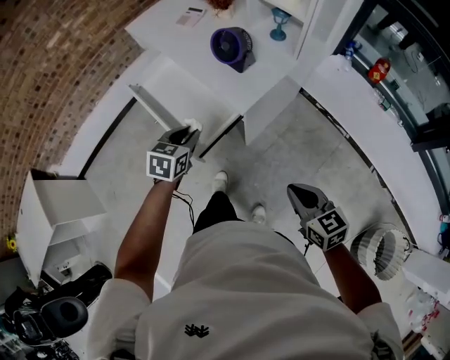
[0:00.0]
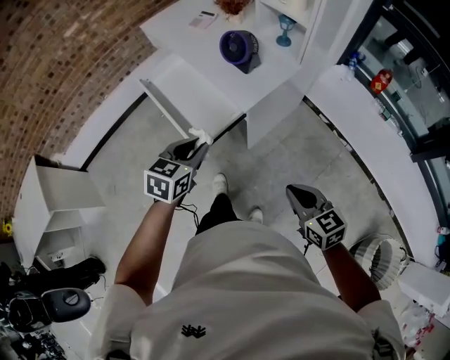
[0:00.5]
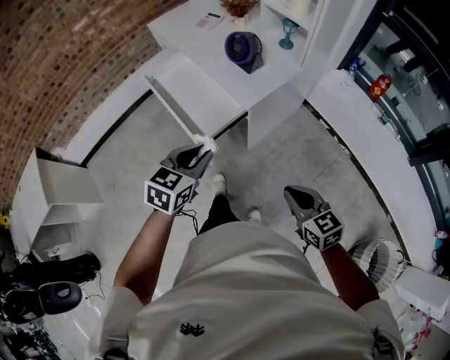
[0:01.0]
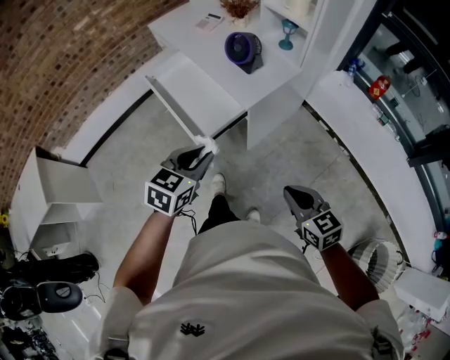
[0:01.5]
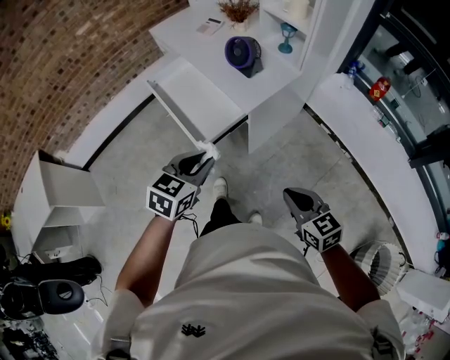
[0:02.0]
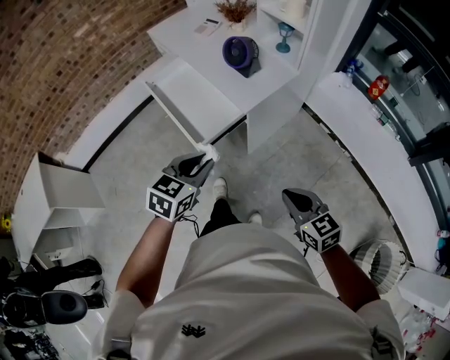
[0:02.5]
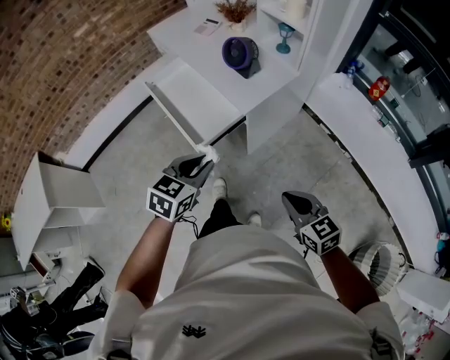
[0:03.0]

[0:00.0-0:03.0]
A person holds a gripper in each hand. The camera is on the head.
0:00.0 to 0:01.5: The left gripper shifts some 20 cm backward and upward. The right gripper goes some 5 cm backward.
0:01.5 to 0:03.0: Neither gripper changes place.

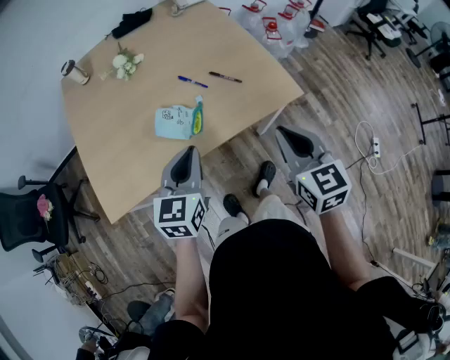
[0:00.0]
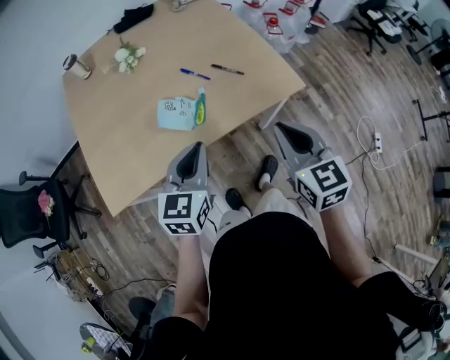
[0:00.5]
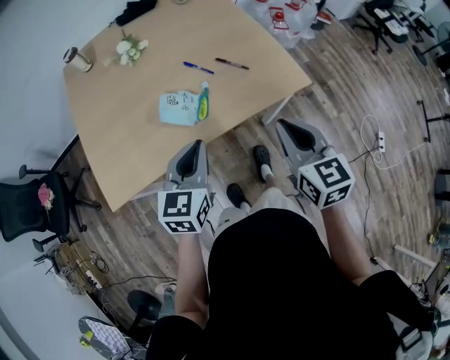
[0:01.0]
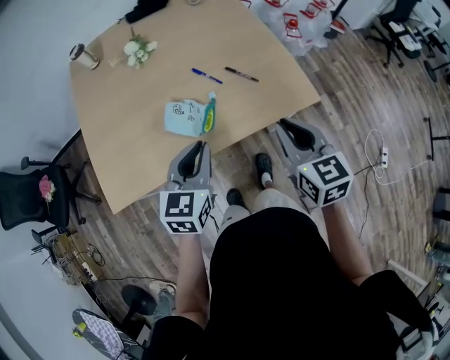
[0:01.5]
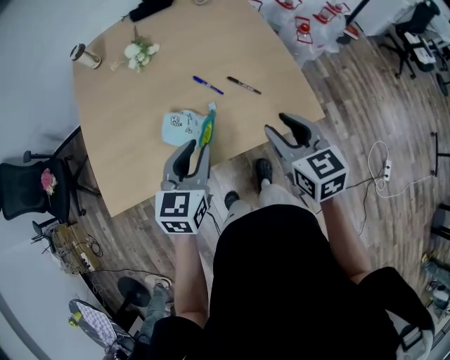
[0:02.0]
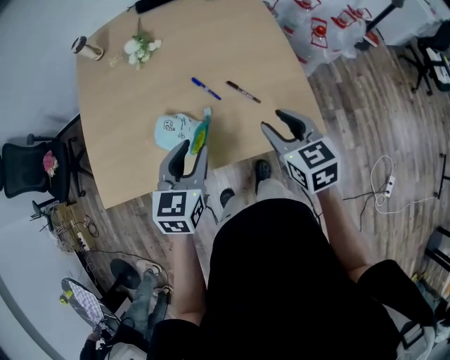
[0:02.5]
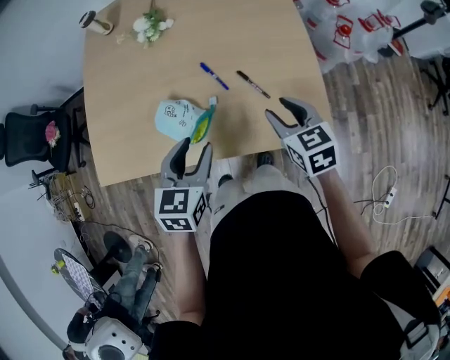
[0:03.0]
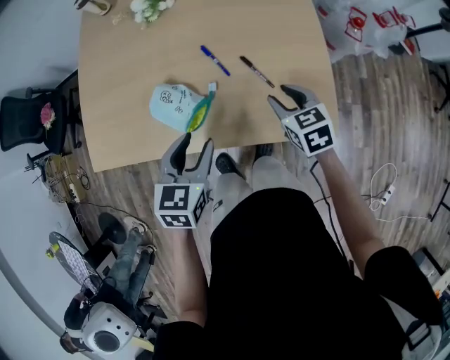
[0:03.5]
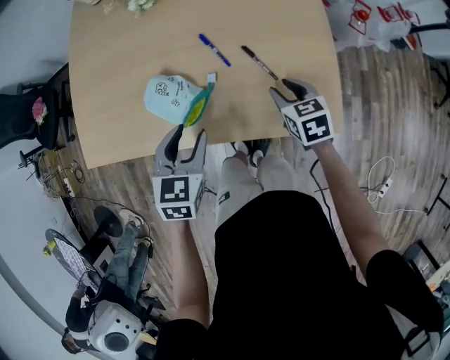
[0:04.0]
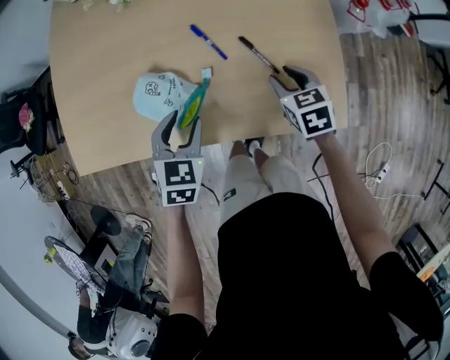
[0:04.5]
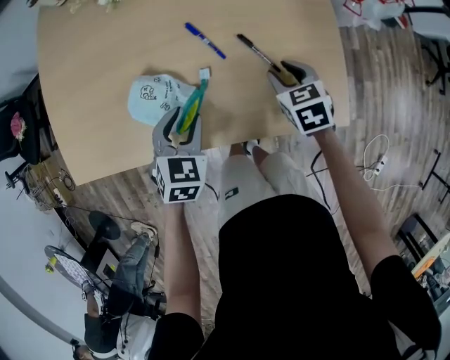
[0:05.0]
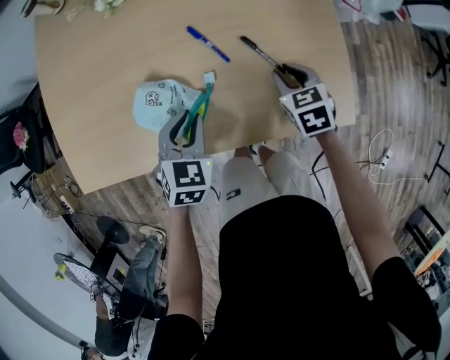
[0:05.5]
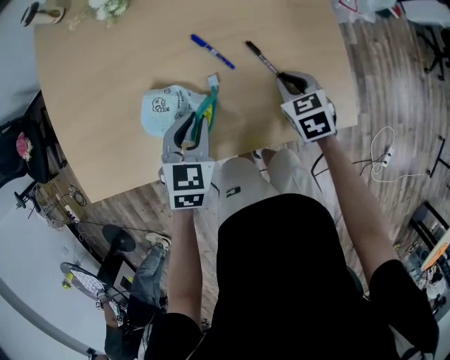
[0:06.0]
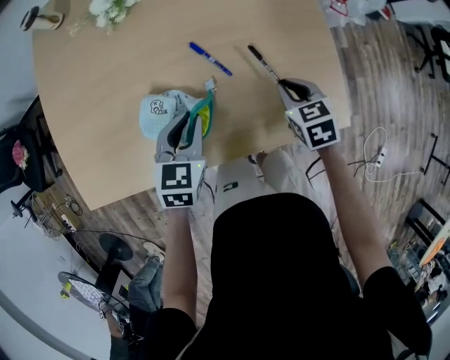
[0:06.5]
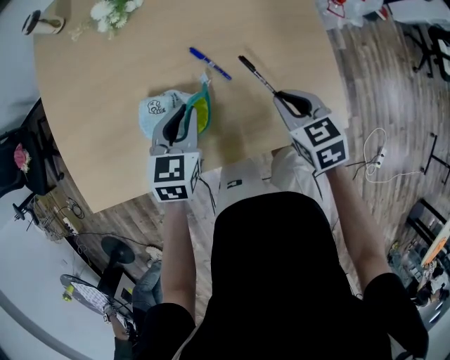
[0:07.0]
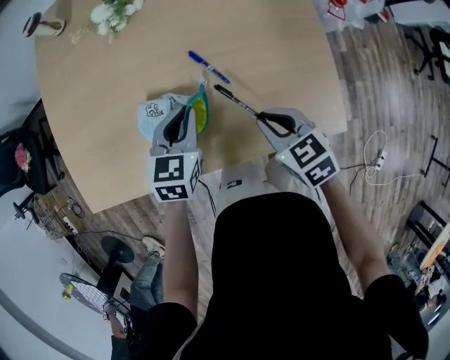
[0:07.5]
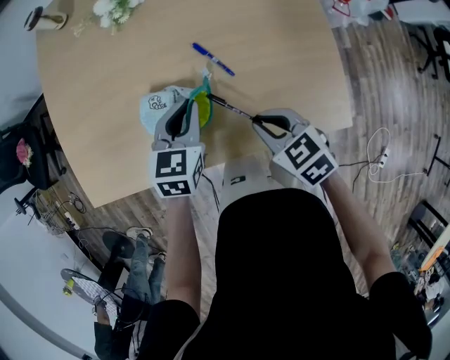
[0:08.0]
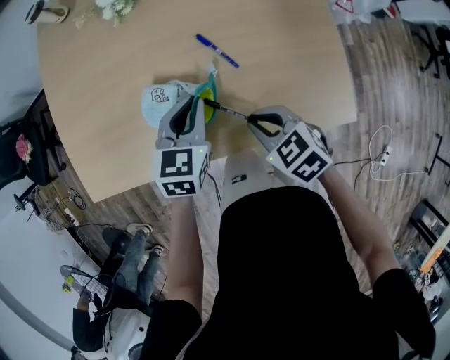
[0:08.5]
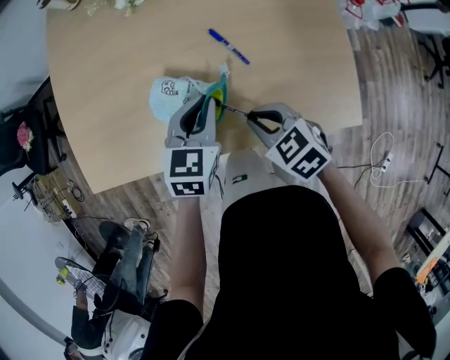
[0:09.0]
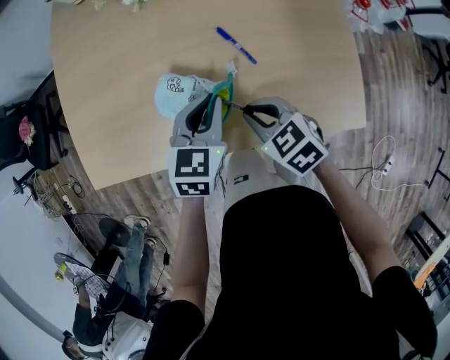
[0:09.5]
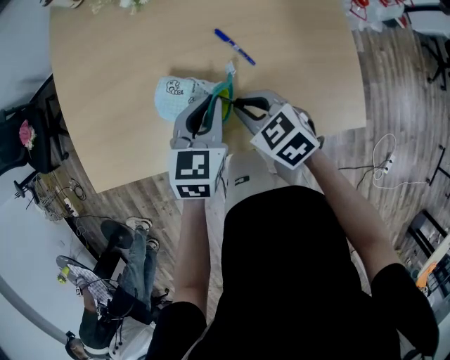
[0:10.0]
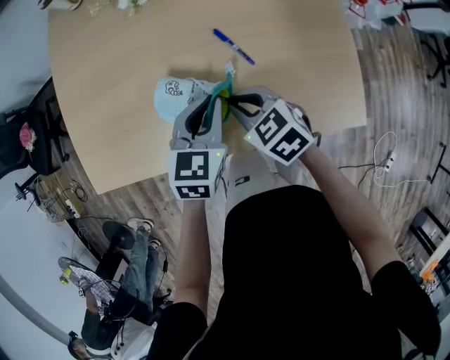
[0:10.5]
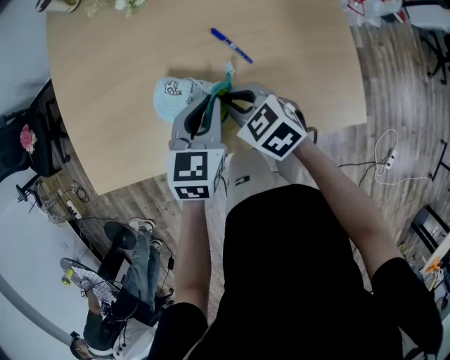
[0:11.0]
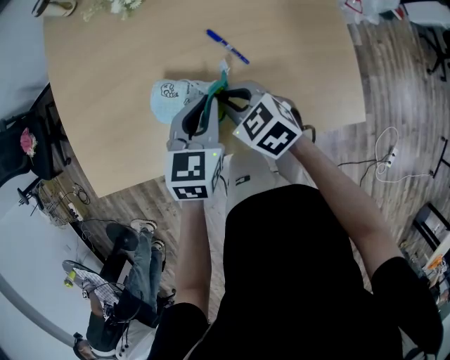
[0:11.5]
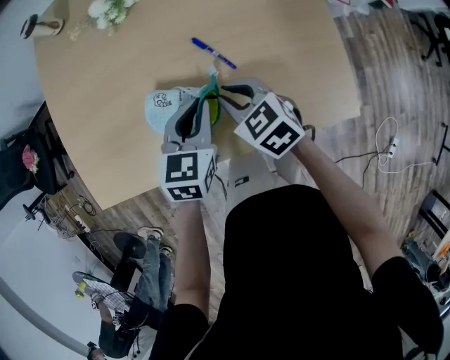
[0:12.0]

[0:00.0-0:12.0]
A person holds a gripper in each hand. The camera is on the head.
0:00.0 to 0:02.0: The right gripper travels forward by approximately 15 cm, and opens up. Meanwhile the left gripper heads forward, covering approximately 10 cm, and opens up.
0:02.0 to 0:04.0: The right gripper is displaced downward and forward by about 25 cm, and rotates approximately 30 degrees, while the left gripper goes roughly 10 cm downward, turns by roughly 30 degrees, and opens its fingers.
0:04.0 to 0:06.0: The left gripper shifts some 10 cm downward and forward, and closes its fingers; the right gripper moves some 5 cm, and closes up.
0:06.0 to 0:08.0: The left gripper moves approximately 5 cm; the right gripper goes about 15 cm to the left, upward and backward, and rotates approximately 20 degrees.
0:08.0 to 0:10.0: The right gripper is displaced to the left and forward by approximately 10 cm.
0:10.0 to 0:12.0: There are only small adjustments of the grippers.

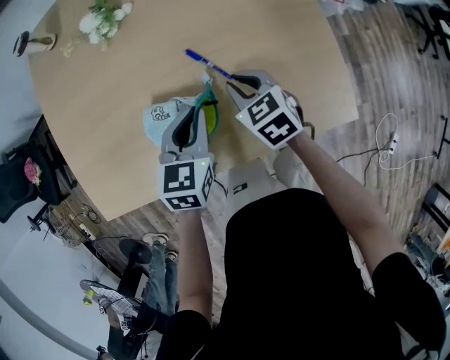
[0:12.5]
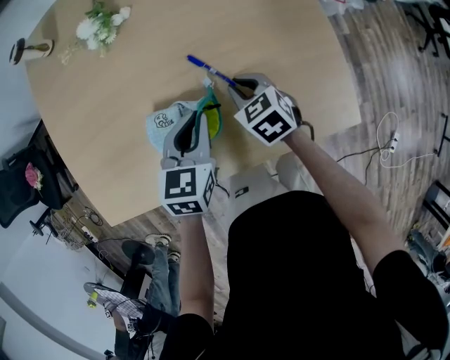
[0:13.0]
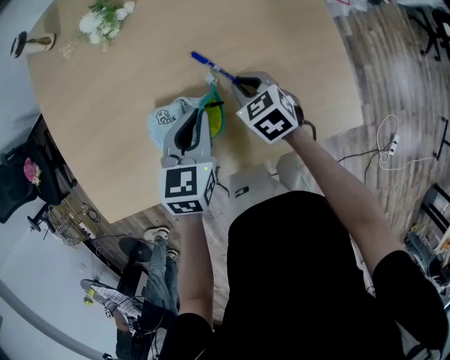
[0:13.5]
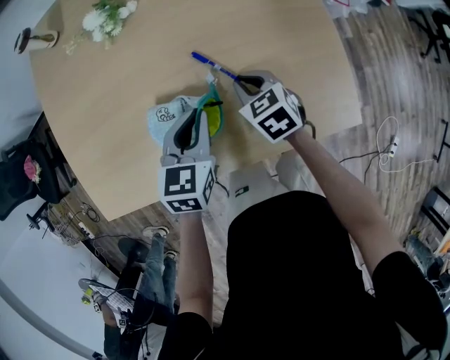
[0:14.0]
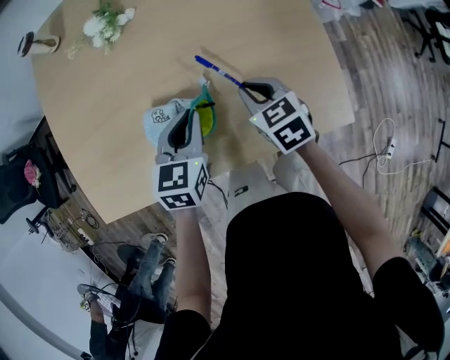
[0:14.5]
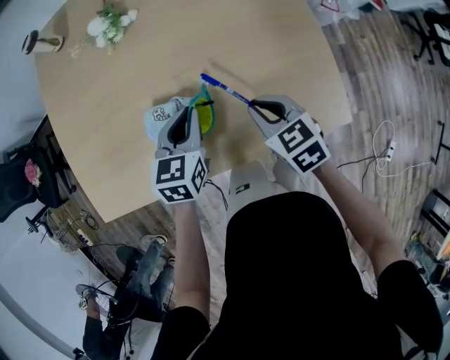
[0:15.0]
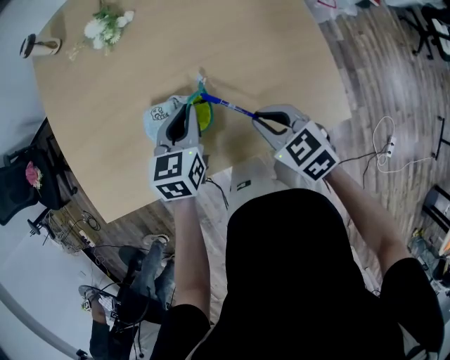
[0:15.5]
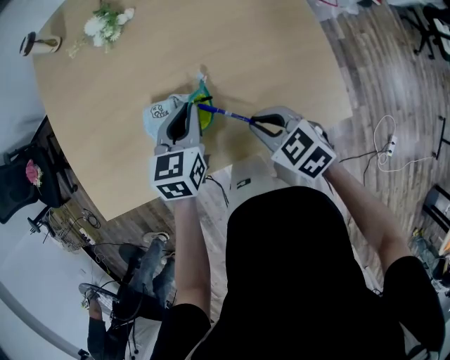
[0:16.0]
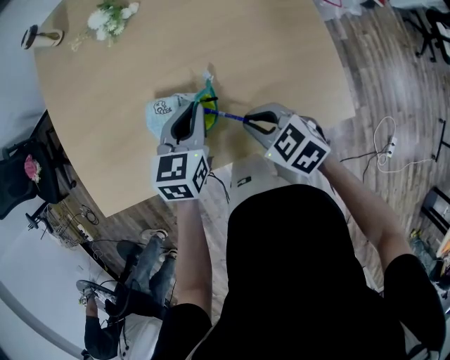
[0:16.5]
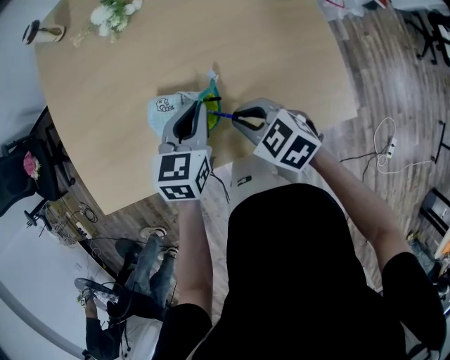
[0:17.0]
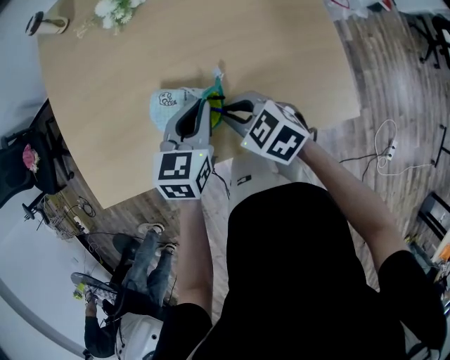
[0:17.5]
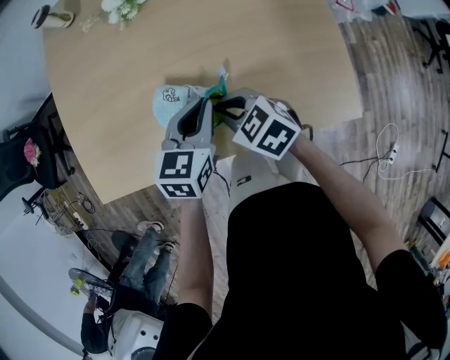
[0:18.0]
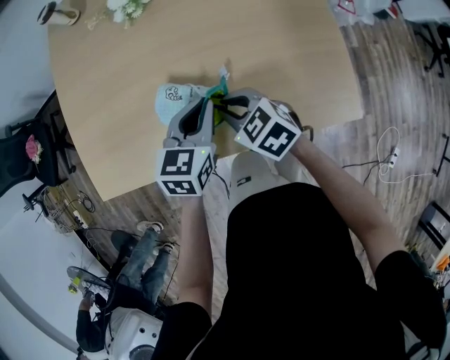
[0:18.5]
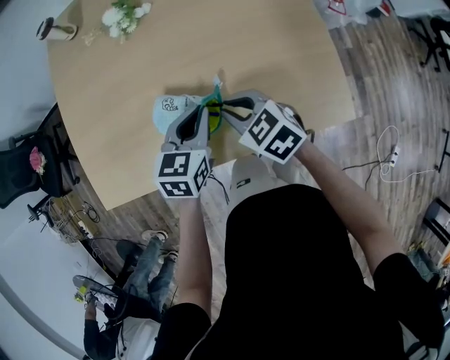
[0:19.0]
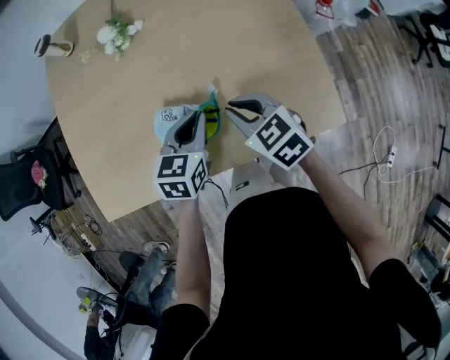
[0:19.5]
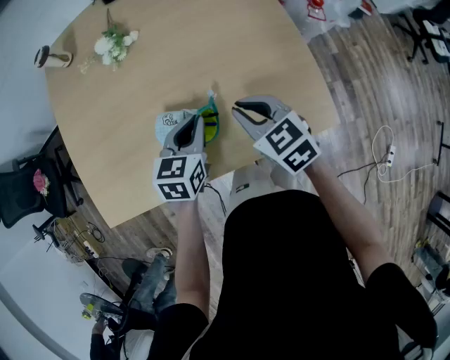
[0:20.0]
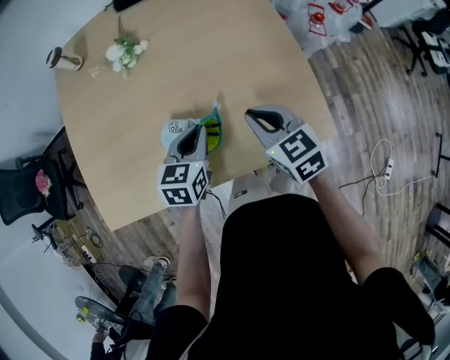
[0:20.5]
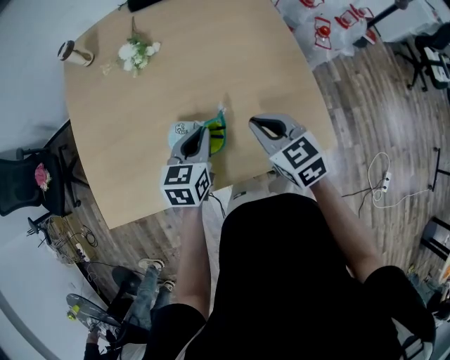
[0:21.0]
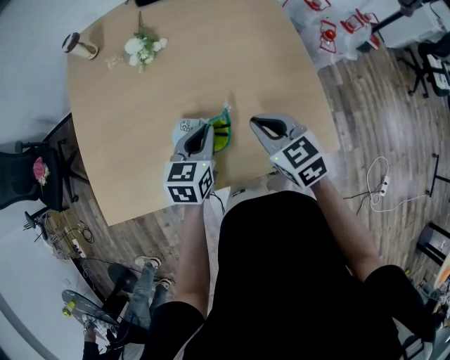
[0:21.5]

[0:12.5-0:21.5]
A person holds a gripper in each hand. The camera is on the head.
0:12.5 to 0:14.5: The grippers stay close to where they were, moving slightly.
0:14.5 to 0:17.0: The right gripper is displaced to the left and backward by roughly 10 cm, and rotates roughly 20 degrees.
0:17.0 to 0:19.5: The right gripper changes place by approximately 5 cm.
0:19.5 to 0:21.5: The right gripper travels upward by approximately 5 cm.

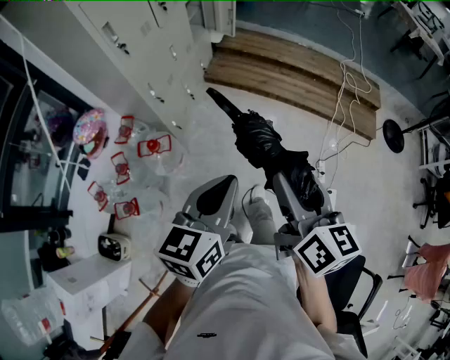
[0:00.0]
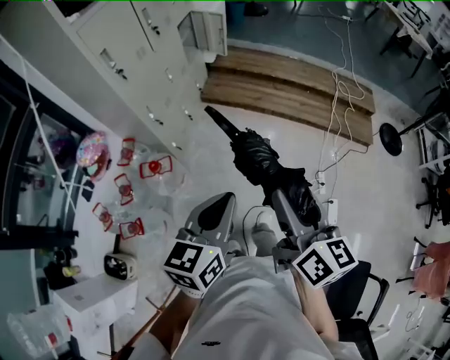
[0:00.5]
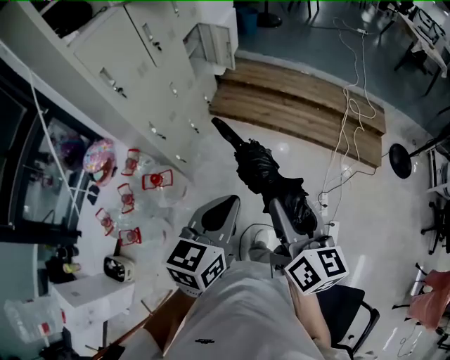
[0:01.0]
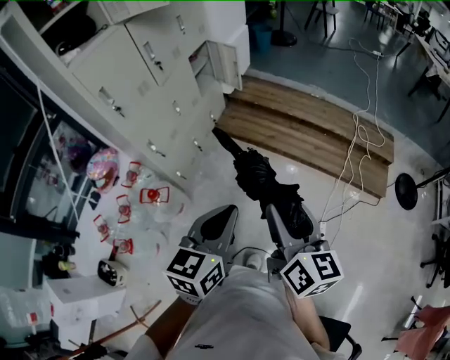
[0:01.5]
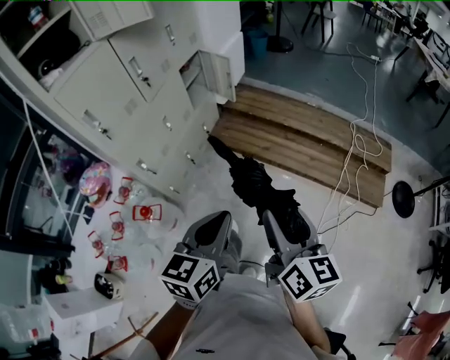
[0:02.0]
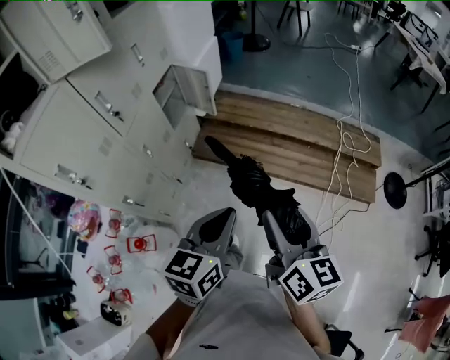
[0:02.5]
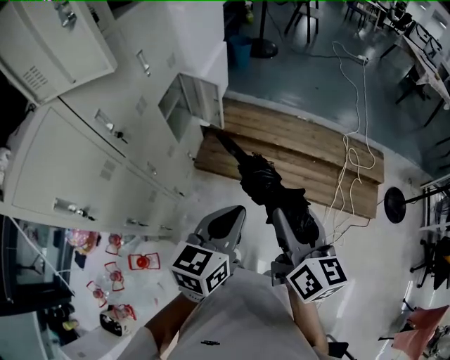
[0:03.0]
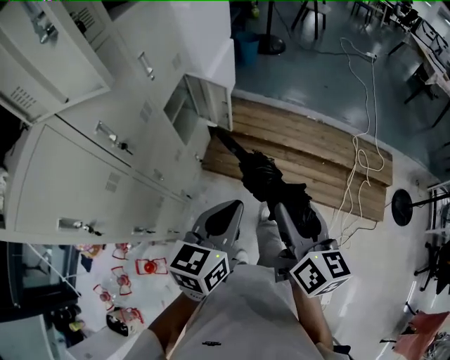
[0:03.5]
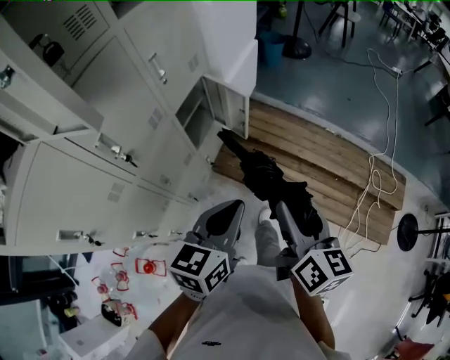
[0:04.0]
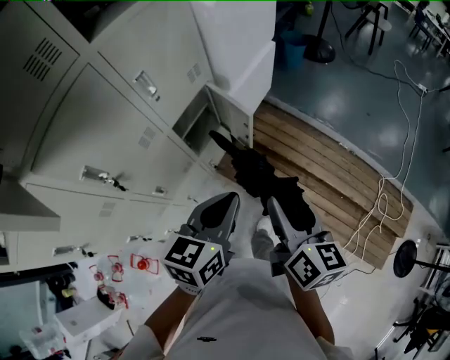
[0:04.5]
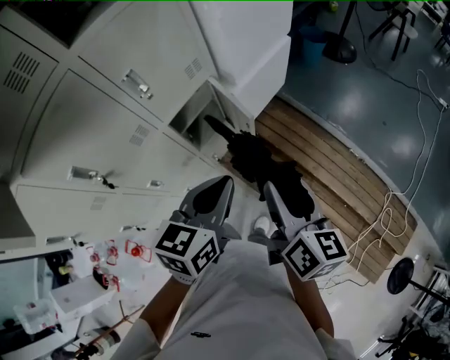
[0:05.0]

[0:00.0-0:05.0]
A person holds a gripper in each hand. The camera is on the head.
0:00.0 to 0:02.5: The two grippers go roughly 40 cm forward.
0:02.5 to 0:05.0: Both grippers are carried roughly 50 cm. The left gripper turns by roughly 20 degrees; the right gripper turns by some 20 degrees.
